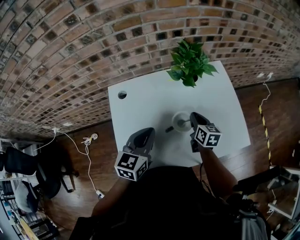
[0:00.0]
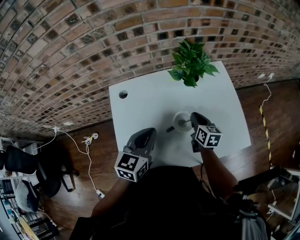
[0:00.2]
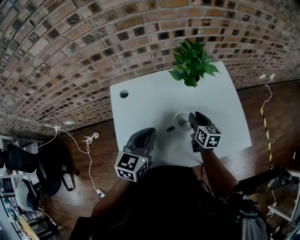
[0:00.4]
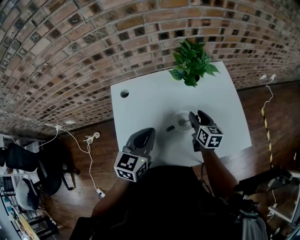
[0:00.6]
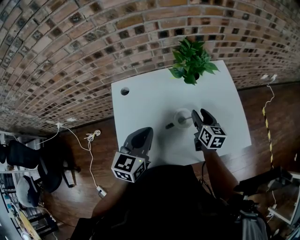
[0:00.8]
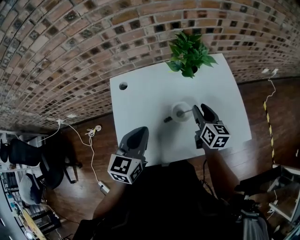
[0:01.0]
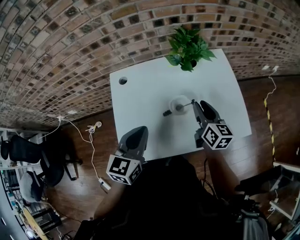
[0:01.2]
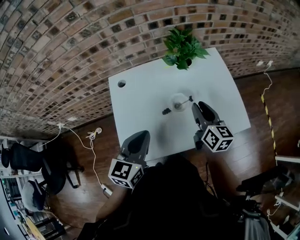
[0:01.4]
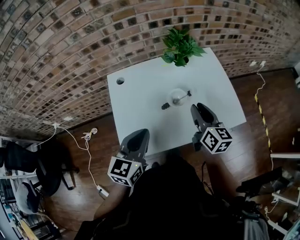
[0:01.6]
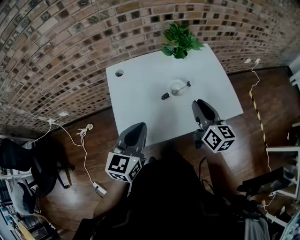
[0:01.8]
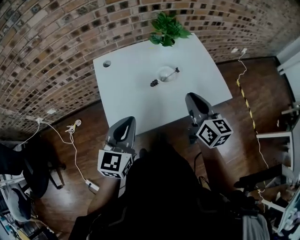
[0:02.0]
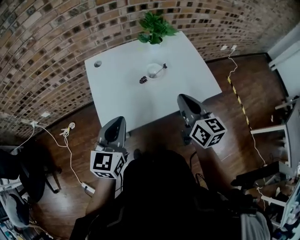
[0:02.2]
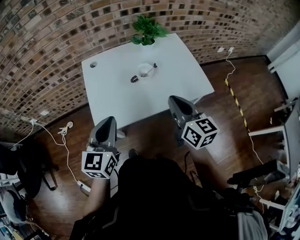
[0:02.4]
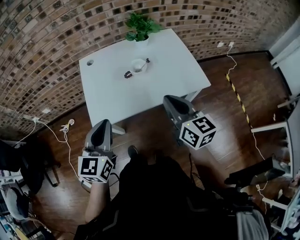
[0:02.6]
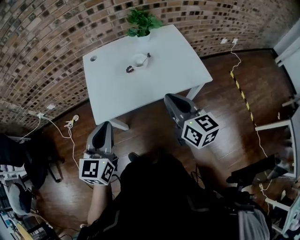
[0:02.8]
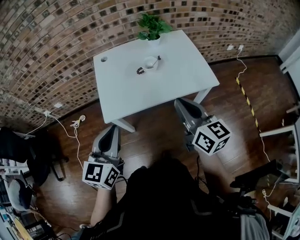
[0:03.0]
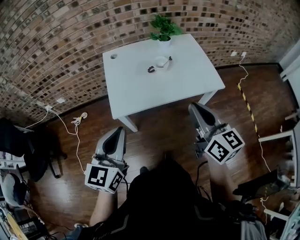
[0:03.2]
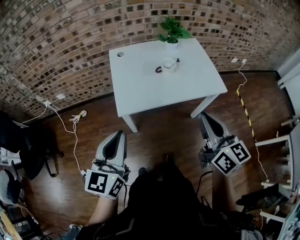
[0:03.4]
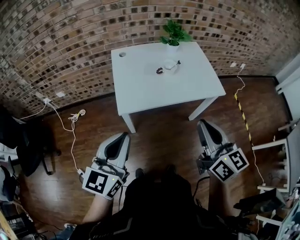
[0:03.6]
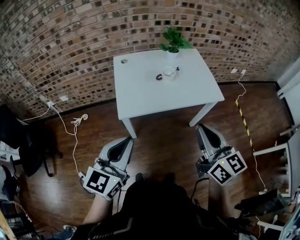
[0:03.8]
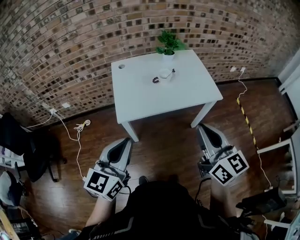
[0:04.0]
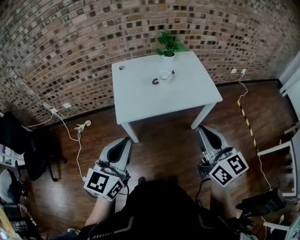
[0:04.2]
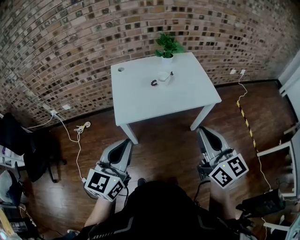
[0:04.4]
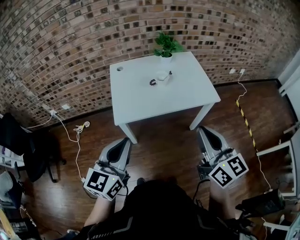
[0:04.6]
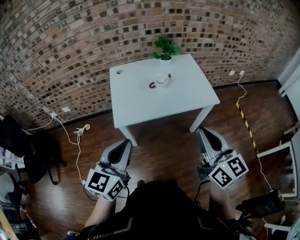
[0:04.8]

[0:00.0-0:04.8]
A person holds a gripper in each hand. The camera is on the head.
0:00.0 to 0:01.6: The right gripper shifts approximately 20 cm upward and backward, and opens; the left gripper goes approximately 15 cm backward.
0:01.6 to 0:03.2: The left gripper travels backward by approximately 25 cm; the right gripper shifts about 30 cm backward and upward, and closes up.
0:03.2 to 0:04.8: The left gripper goes some 5 cm backward. The right gripper heads backward, covering approximately 10 cm.

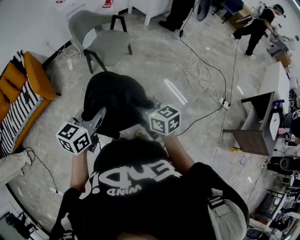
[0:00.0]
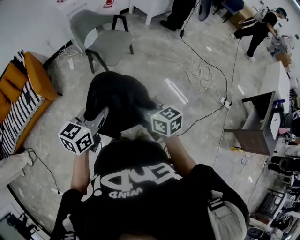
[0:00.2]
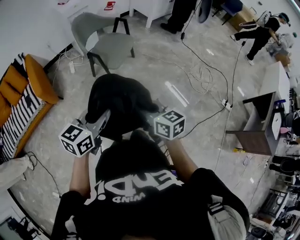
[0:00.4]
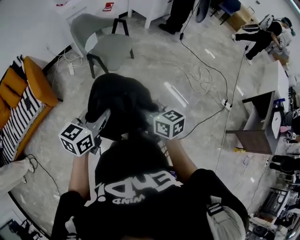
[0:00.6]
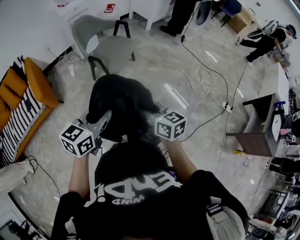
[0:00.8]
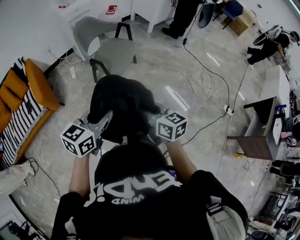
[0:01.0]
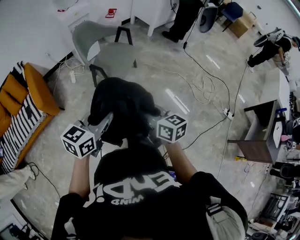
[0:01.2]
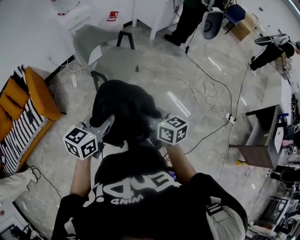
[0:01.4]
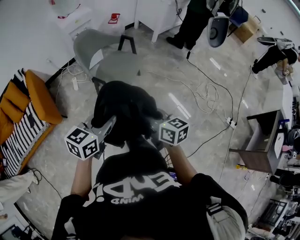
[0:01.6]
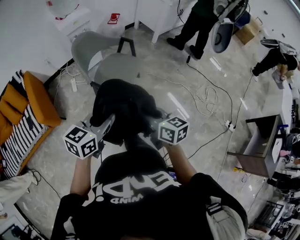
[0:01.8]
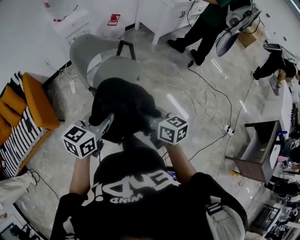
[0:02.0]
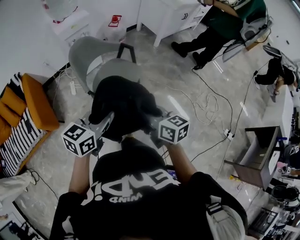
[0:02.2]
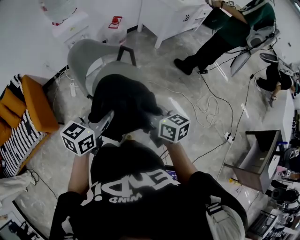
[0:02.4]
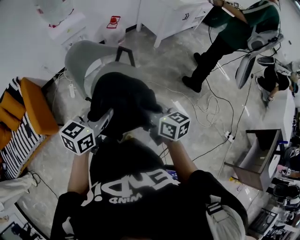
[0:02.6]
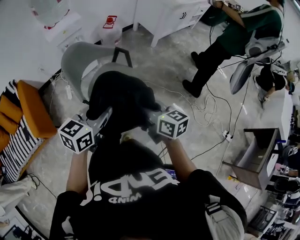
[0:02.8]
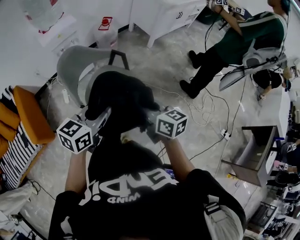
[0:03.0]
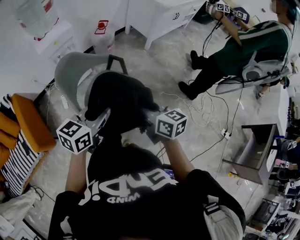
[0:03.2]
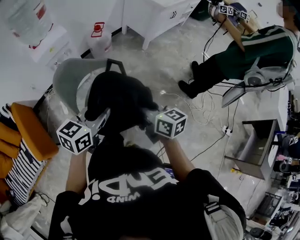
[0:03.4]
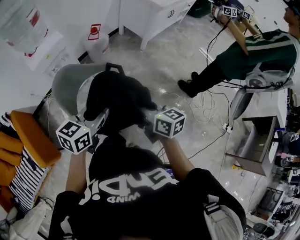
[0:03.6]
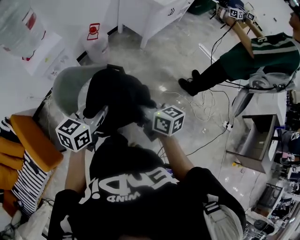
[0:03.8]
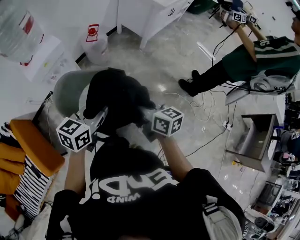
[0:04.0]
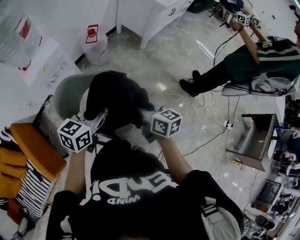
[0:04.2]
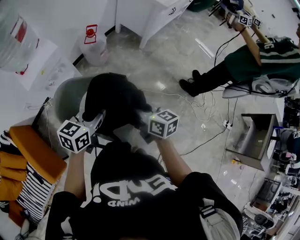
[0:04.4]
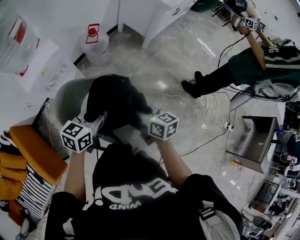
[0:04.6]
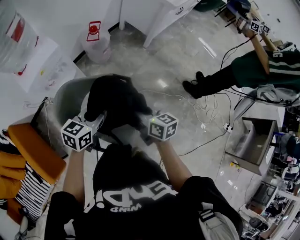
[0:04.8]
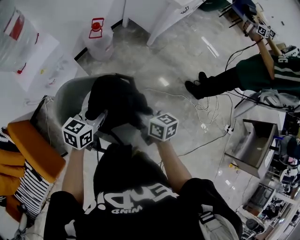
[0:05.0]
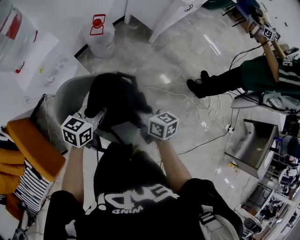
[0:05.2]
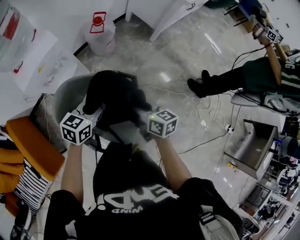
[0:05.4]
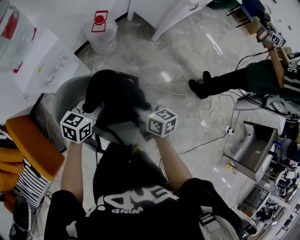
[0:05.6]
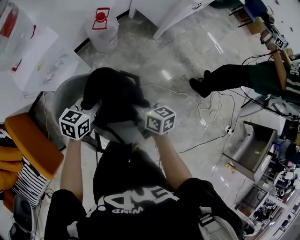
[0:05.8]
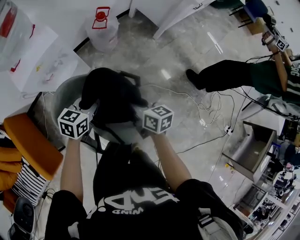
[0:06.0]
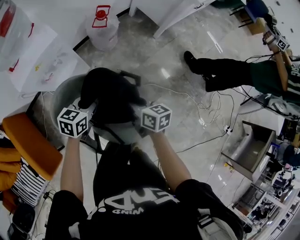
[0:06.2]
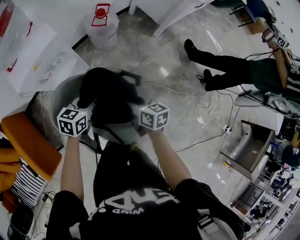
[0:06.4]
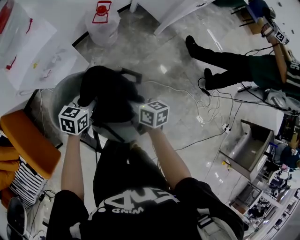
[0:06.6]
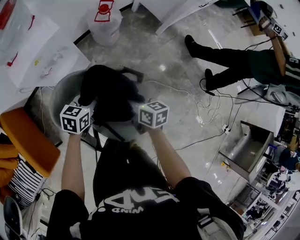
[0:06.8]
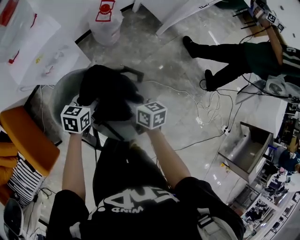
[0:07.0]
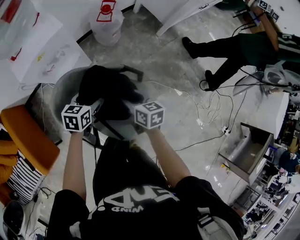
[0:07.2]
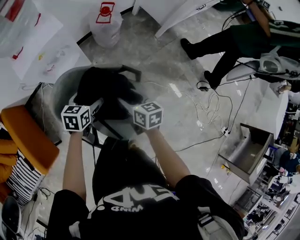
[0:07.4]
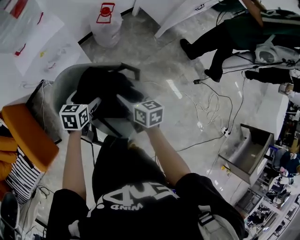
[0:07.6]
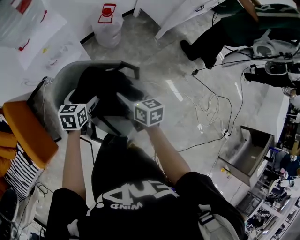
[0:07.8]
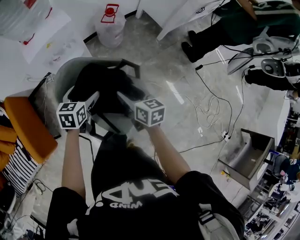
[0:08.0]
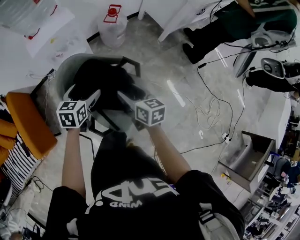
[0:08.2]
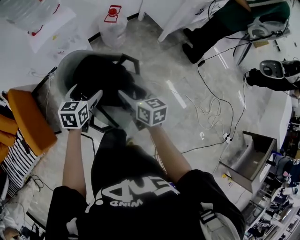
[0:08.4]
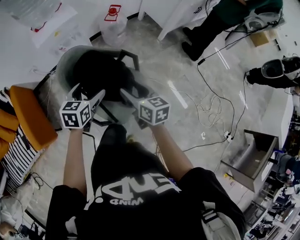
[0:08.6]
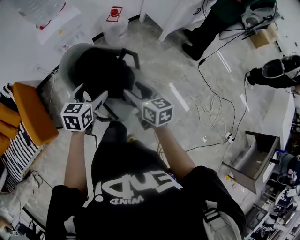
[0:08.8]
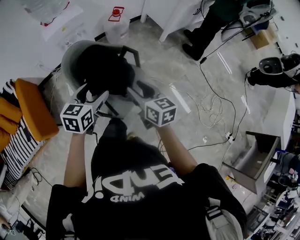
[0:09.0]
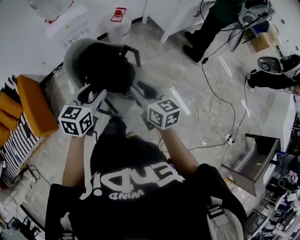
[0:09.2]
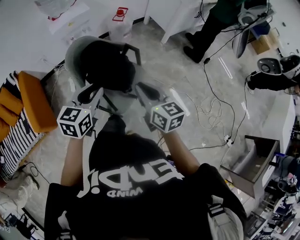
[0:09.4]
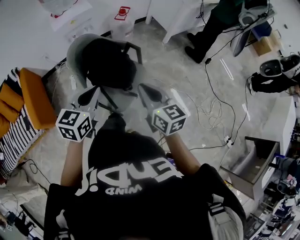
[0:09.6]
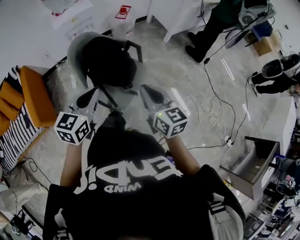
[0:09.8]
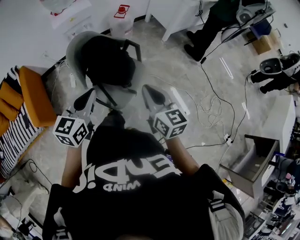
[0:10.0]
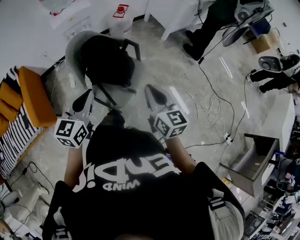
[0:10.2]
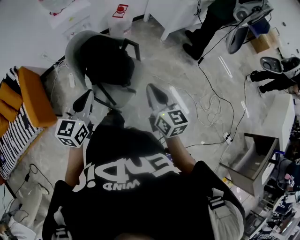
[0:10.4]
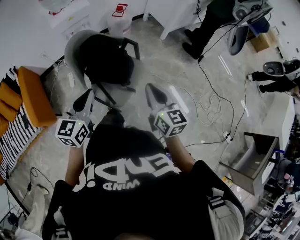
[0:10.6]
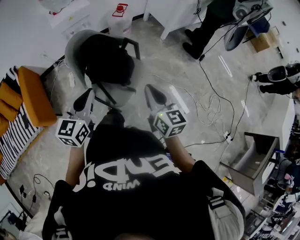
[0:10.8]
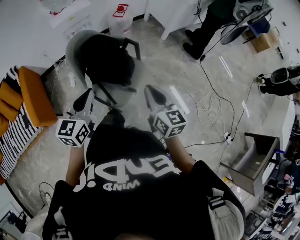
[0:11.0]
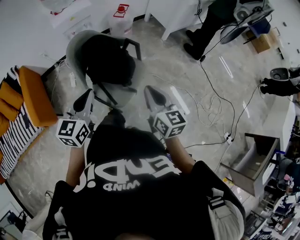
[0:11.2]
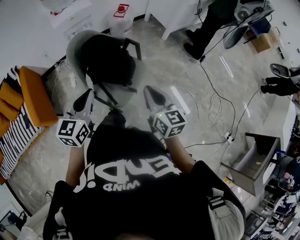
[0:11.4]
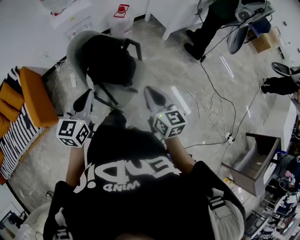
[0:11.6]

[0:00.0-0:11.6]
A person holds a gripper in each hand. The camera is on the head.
0:00.0 to 0:01.4: The grippers both shift forward by some 15 cm.
0:01.4 to 0:02.8: The two grippers go some 35 cm forward.
0:02.8 to 0:04.4: The left gripper shifts about 30 cm forward; the right gripper shifts approximately 30 cm forward and to the left.
0:04.4 to 0:05.8: Both grippers travel together downward, forward and to the left, some 20 cm.
0:05.8 to 0:07.2: Both grippers move downward, some 5 cm. The right gripper opens; the left gripper opens.
0:07.2 to 0:08.8: Both grippers move backward and upward, approximately 30 cm.
0:08.8 to 0:10.2: The left gripper travels backward and upward by approximately 20 cm, and closes up. Meanwhile the right gripper is displaced backward, upward and to the right by approximately 20 cm, and closes up.
0:10.2 to 0:11.6: The grippers move only a little.

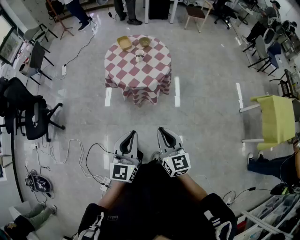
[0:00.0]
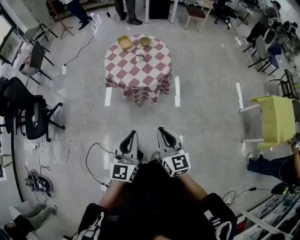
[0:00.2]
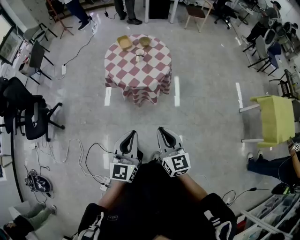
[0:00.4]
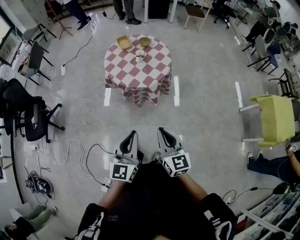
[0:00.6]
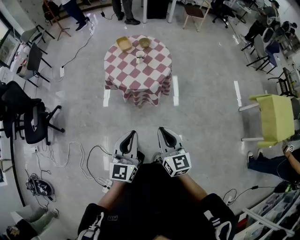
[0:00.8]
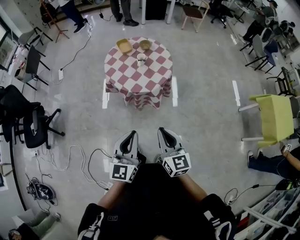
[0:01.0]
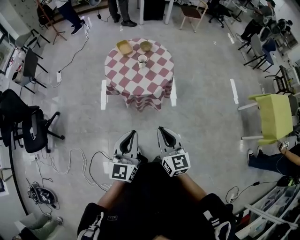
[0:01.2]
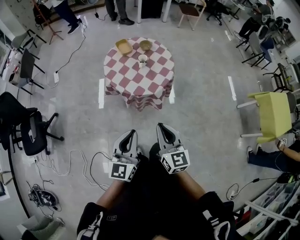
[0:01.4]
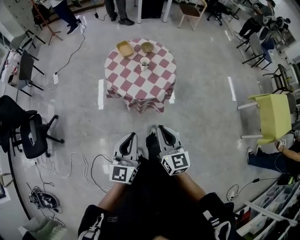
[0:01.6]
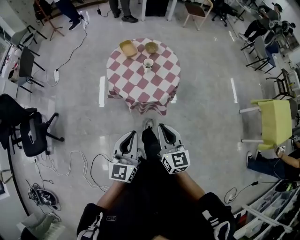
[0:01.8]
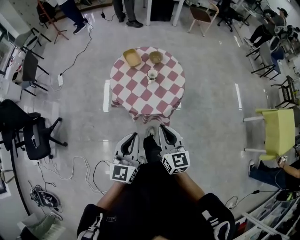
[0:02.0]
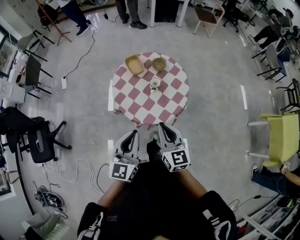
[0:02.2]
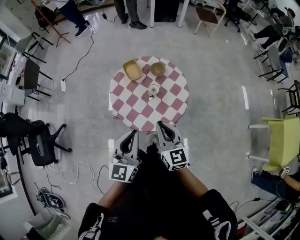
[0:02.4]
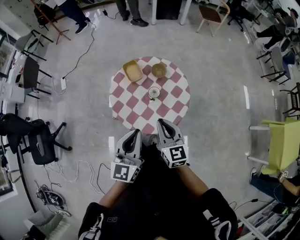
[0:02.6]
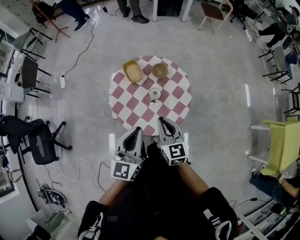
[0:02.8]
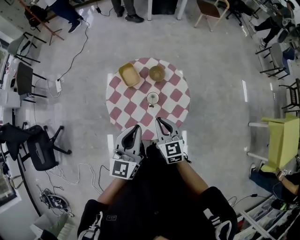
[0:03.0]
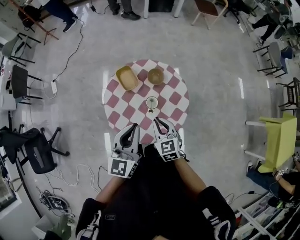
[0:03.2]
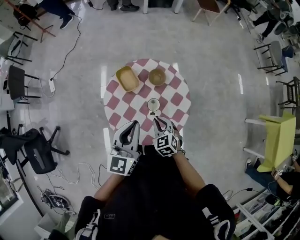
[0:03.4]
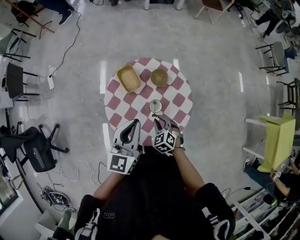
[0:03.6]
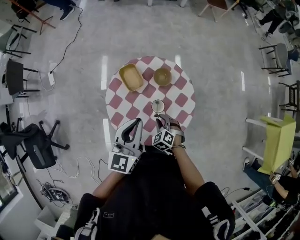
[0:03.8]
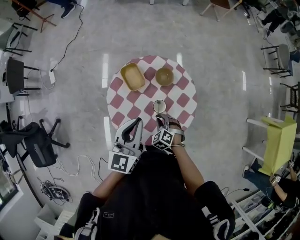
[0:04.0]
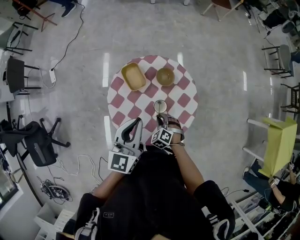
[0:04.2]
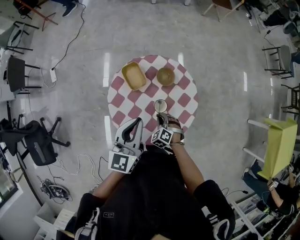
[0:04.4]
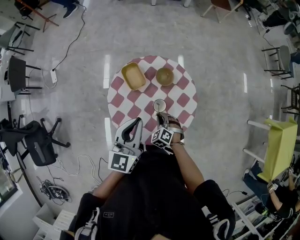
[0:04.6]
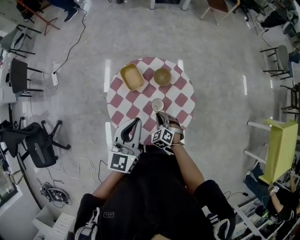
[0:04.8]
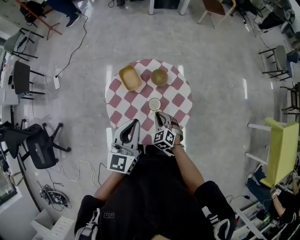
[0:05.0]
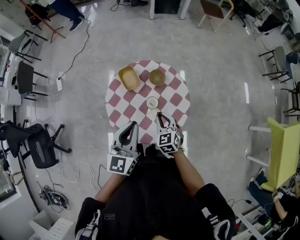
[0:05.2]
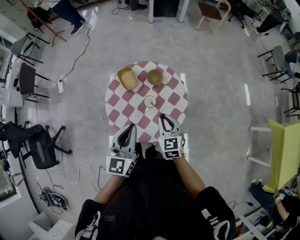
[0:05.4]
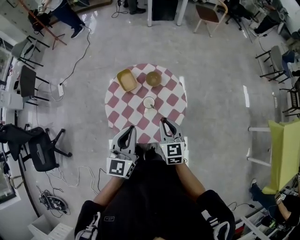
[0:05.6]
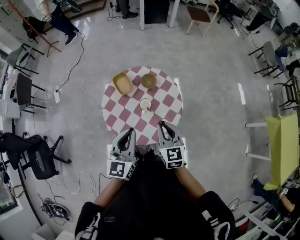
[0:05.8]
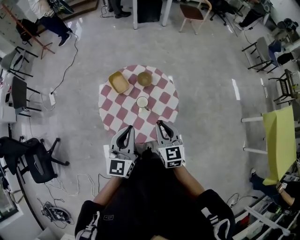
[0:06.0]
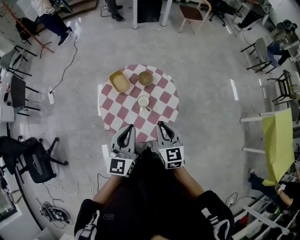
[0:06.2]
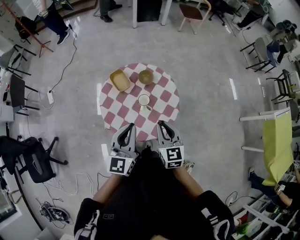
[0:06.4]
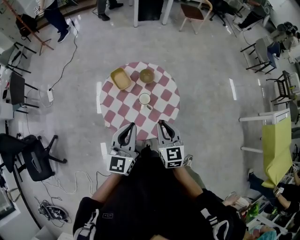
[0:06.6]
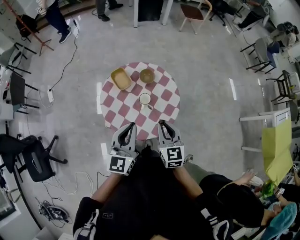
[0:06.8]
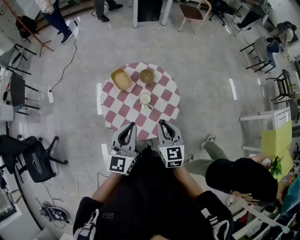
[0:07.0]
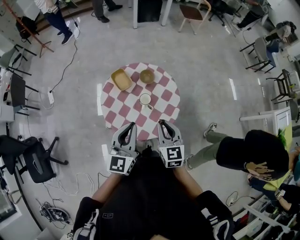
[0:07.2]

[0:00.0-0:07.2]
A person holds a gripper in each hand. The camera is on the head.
0:00.0 to 0:01.4: The grippers both shift forward and to the left by roughly 15 cm.
0:01.4 to 0:02.8: Both grippers move forward, approximately 35 cm.
0:02.8 to 0:04.4: The right gripper travels downward and forward by roughly 30 cm, and tilts its fingers roughly 40 degrees downward, while the left gripper is displaced forward by some 20 cm.
0:04.4 to 0:05.8: The right gripper shifts some 25 cm upward, and tilts its fingers about 40 degrees upward; the left gripper travels backward and to the right by approximately 15 cm.
0:05.8 to 0:07.2: The grippers make only small movements.
